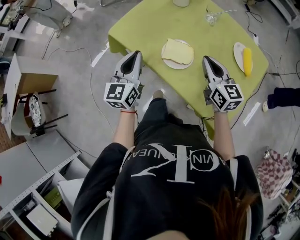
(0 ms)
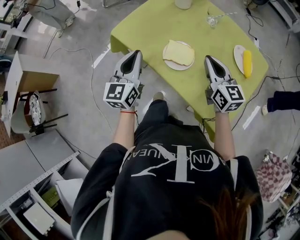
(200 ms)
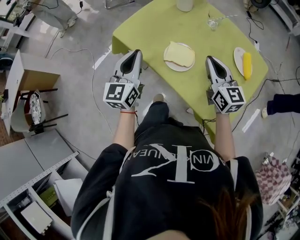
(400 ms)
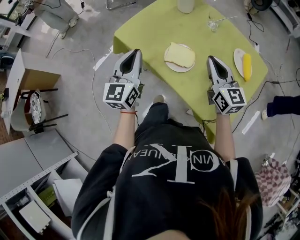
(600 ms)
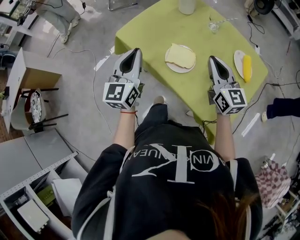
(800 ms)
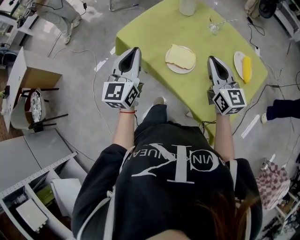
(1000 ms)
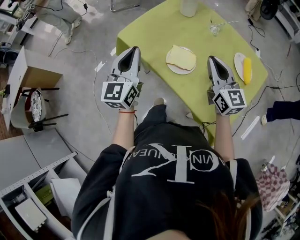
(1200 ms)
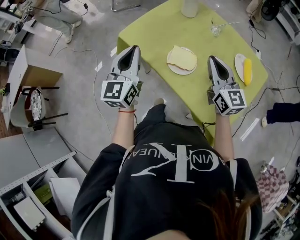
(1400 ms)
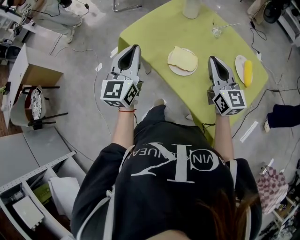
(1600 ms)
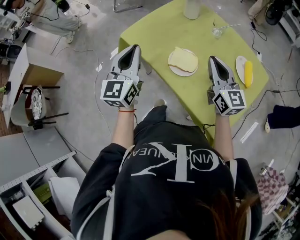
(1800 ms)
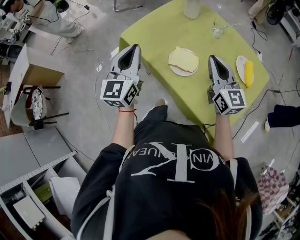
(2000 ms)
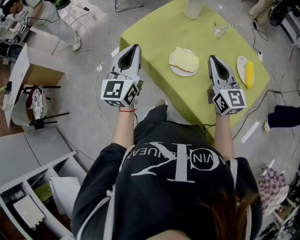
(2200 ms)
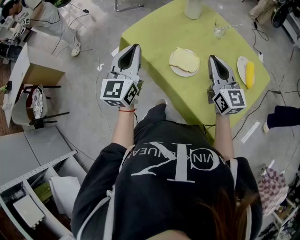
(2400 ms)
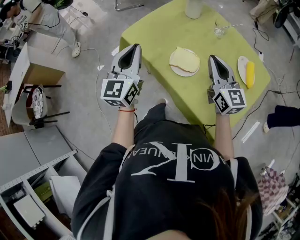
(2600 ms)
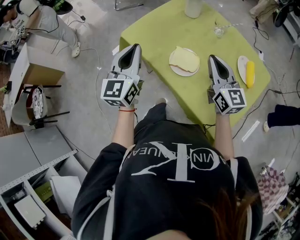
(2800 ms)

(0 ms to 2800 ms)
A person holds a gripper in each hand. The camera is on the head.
0 ms - 1400 ms: Both grippers move upward, approximately 5 cm.
1400 ms - 2800 ms: There are only small adjustments of the grippers.

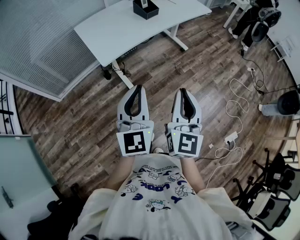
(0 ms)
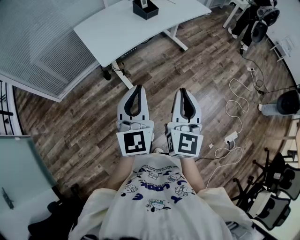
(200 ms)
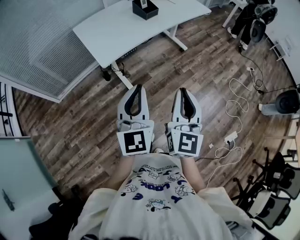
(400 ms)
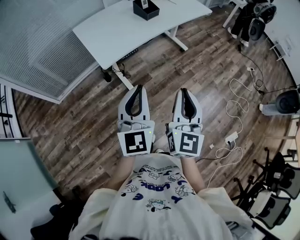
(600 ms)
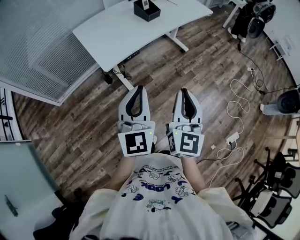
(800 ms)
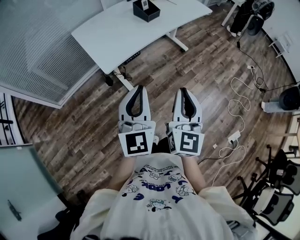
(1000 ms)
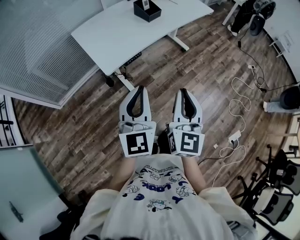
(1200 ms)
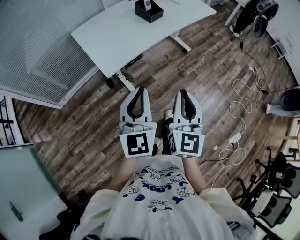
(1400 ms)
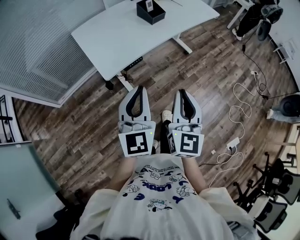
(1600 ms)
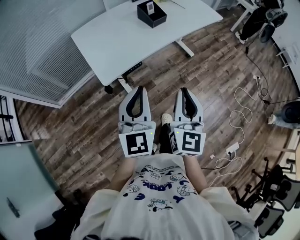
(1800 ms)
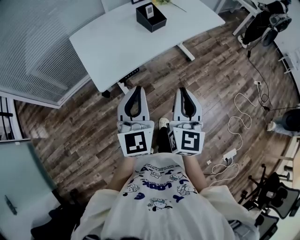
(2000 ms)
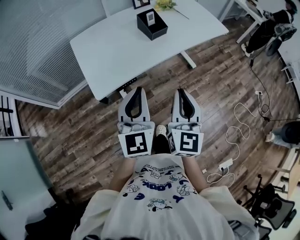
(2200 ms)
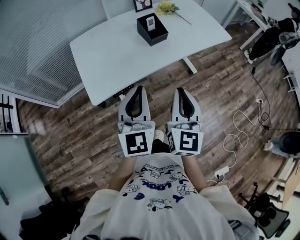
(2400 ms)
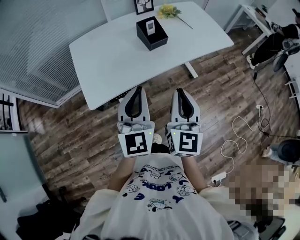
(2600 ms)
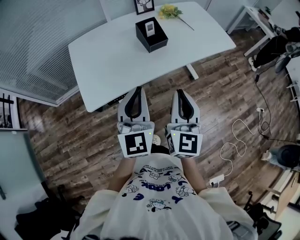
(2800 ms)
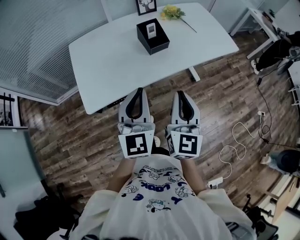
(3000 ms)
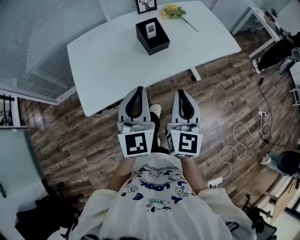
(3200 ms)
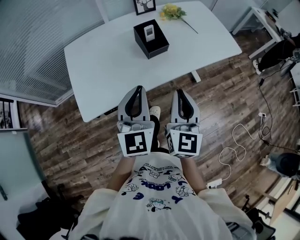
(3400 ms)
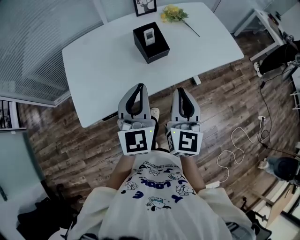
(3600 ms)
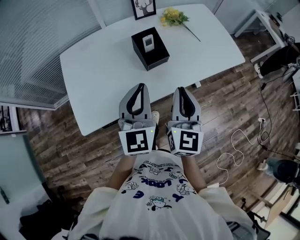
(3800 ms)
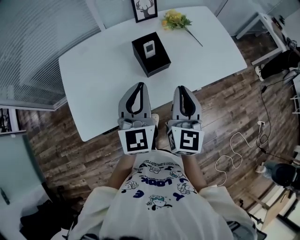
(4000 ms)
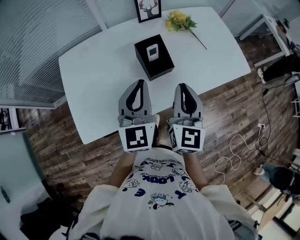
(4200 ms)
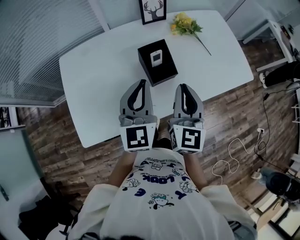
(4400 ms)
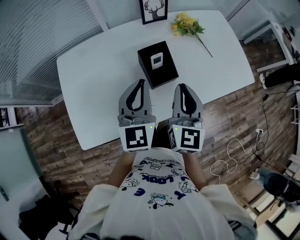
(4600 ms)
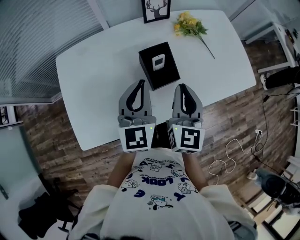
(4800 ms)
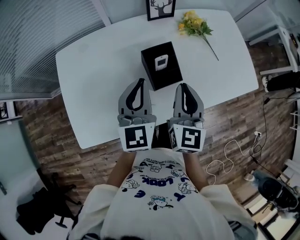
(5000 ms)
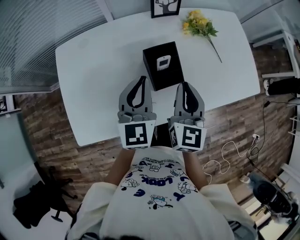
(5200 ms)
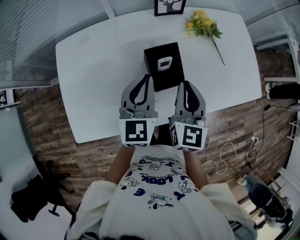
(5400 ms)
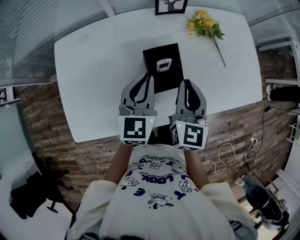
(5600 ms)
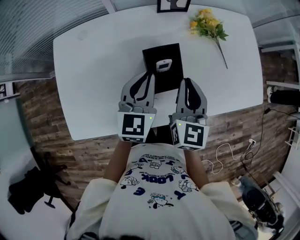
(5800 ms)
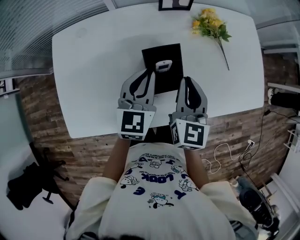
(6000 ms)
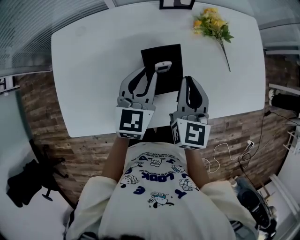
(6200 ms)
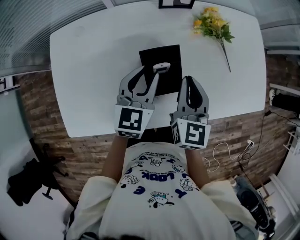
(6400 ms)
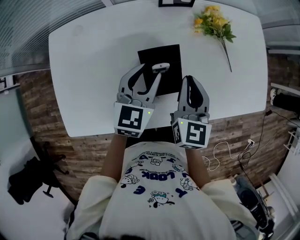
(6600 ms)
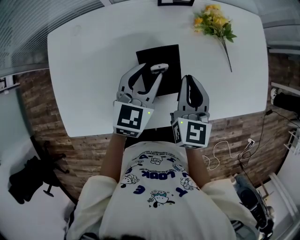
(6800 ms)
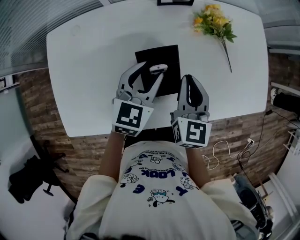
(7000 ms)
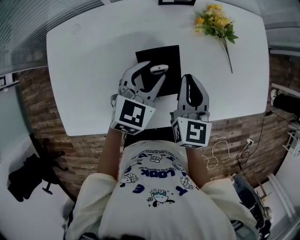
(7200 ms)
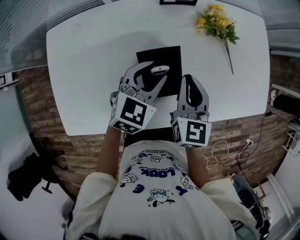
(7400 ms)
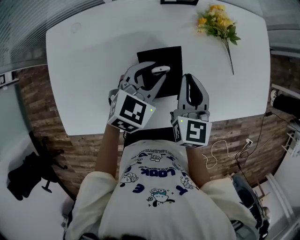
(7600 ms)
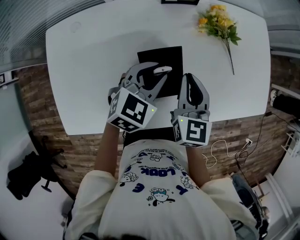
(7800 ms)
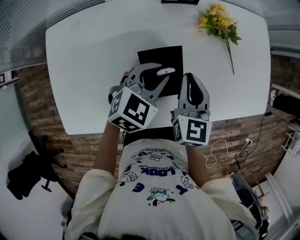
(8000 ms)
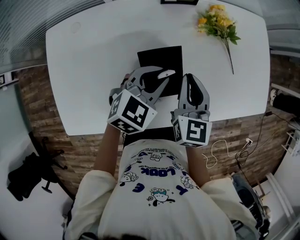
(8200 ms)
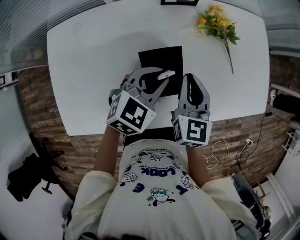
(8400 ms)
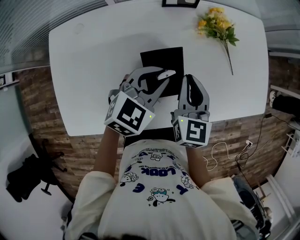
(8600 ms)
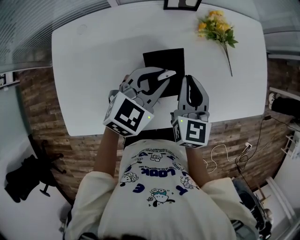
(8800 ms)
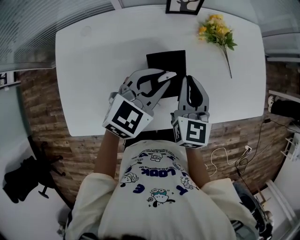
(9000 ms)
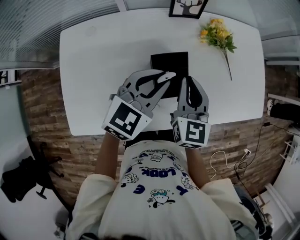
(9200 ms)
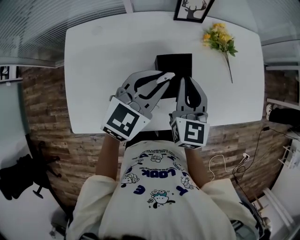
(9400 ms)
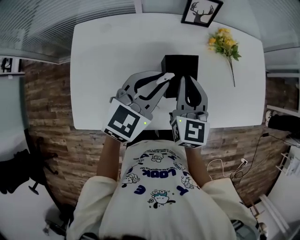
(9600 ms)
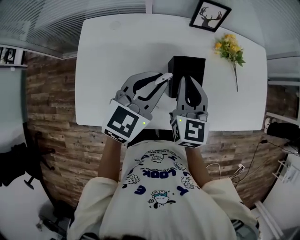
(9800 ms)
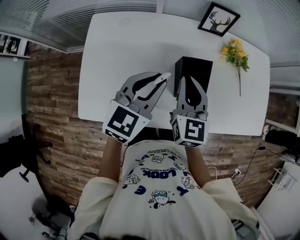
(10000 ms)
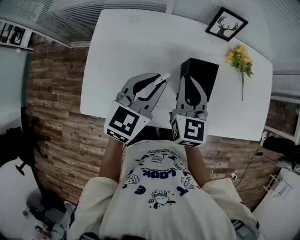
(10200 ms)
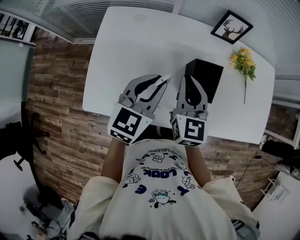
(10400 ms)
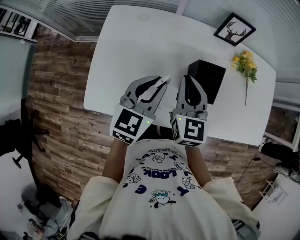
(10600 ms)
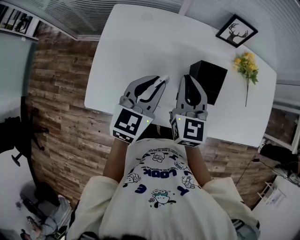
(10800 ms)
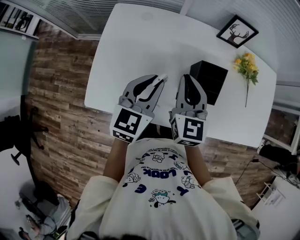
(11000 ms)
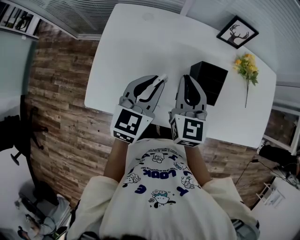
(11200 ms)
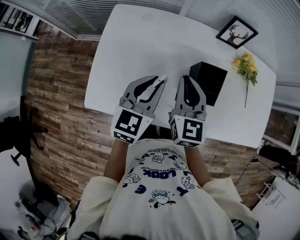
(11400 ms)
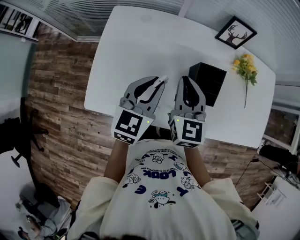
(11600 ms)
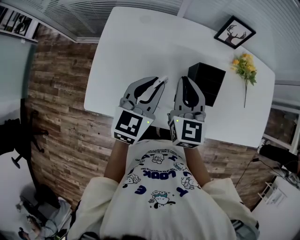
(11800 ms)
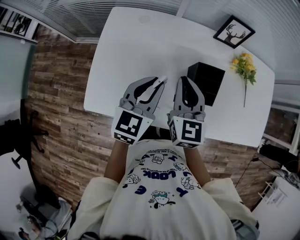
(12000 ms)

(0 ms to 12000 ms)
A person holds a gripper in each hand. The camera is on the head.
0 ms - 1600 ms: The left gripper is displaced forward by approximately 10 cm; the right gripper travels forward and to the left by some 15 cm.
1600 ms - 3000 ms: The grippers both shift forward and to the right by about 30 cm.
3000 ms - 4400 ms: The grippers both shift forward by approximately 30 cm.
4400 ms - 6000 ms: Both grippers travel together forward and downward, roughly 15 cm.
6000 ms - 7600 ms: The right gripper shifts by some 5 cm. The left gripper ends up some 5 cm from where it was, swivels approximately 30 degrees, and opens its fingers.
7600 ms - 9000 ms: The left gripper is displaced upward by about 5 cm.
9000 ms - 10400 ms: Both grippers move to the left and backward, some 15 cm. The left gripper rotates roughly 30 degrees.
10400 ms - 12000 ms: The grippers move only a little.

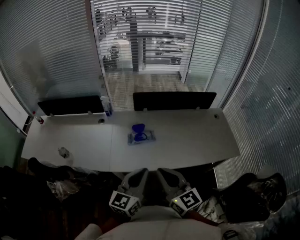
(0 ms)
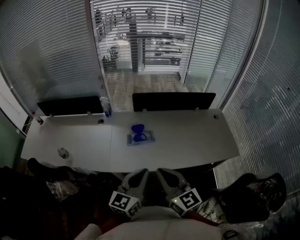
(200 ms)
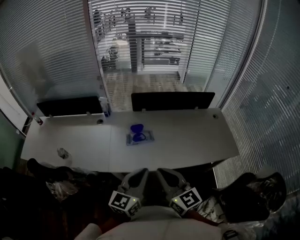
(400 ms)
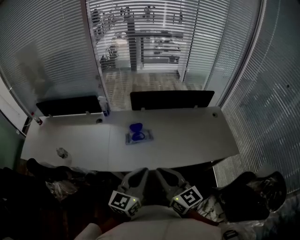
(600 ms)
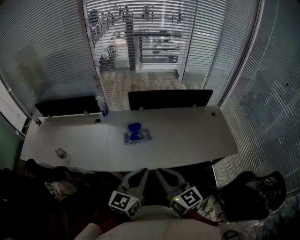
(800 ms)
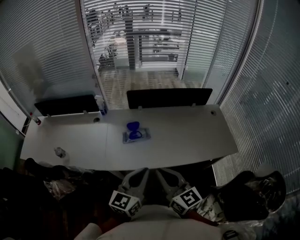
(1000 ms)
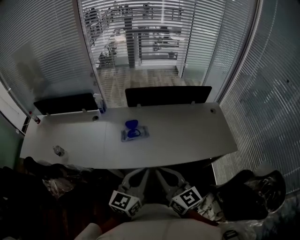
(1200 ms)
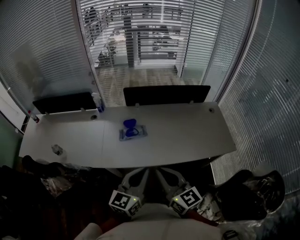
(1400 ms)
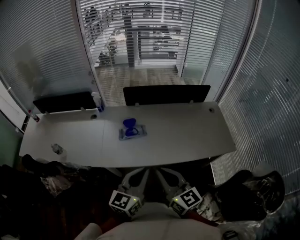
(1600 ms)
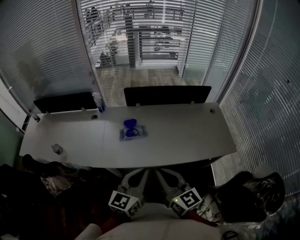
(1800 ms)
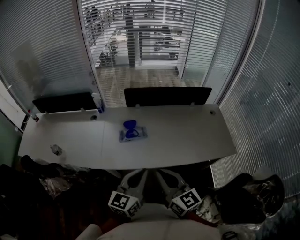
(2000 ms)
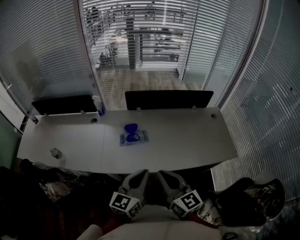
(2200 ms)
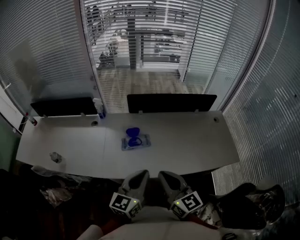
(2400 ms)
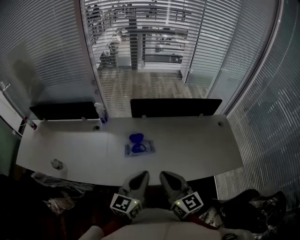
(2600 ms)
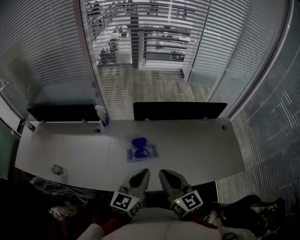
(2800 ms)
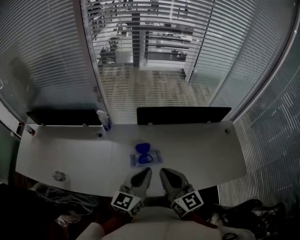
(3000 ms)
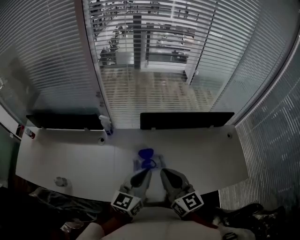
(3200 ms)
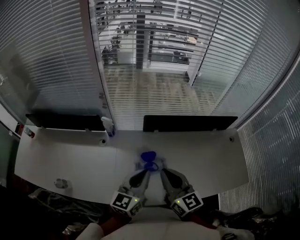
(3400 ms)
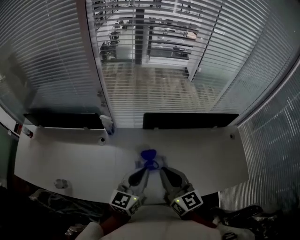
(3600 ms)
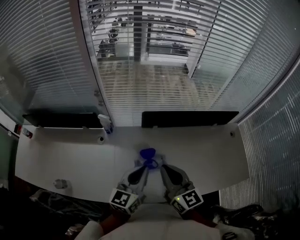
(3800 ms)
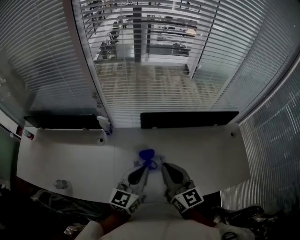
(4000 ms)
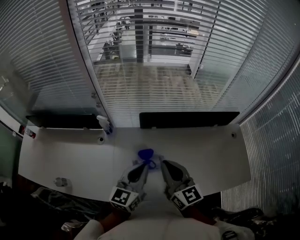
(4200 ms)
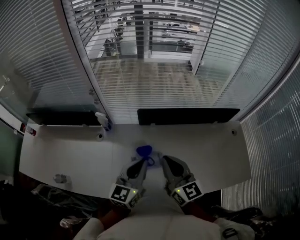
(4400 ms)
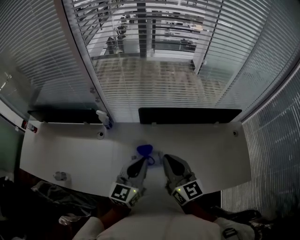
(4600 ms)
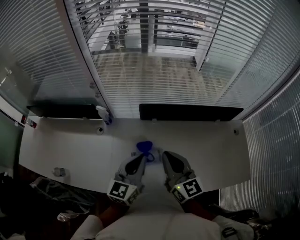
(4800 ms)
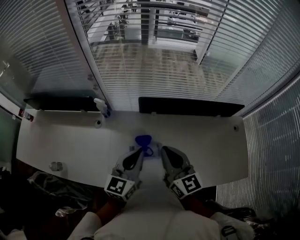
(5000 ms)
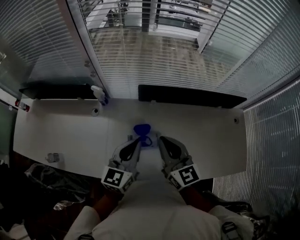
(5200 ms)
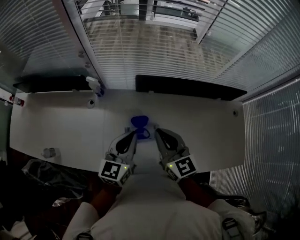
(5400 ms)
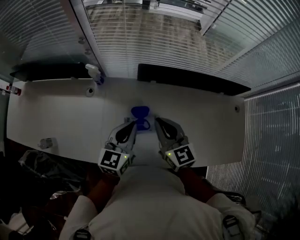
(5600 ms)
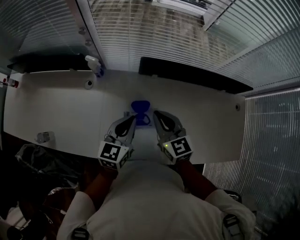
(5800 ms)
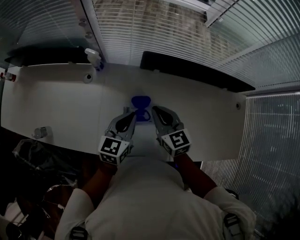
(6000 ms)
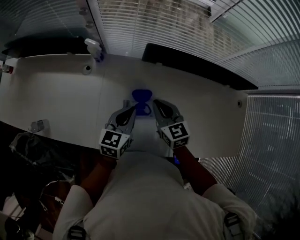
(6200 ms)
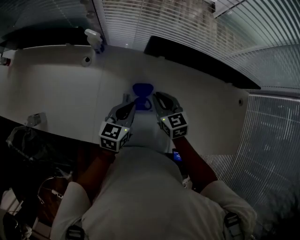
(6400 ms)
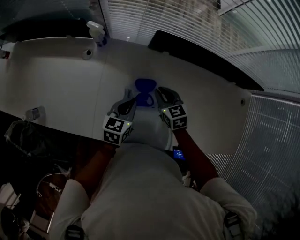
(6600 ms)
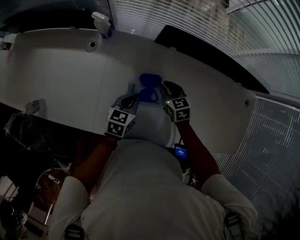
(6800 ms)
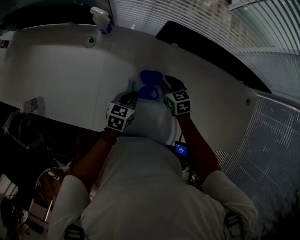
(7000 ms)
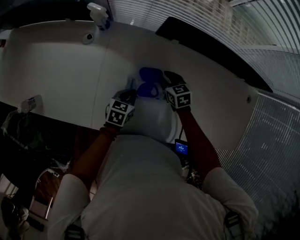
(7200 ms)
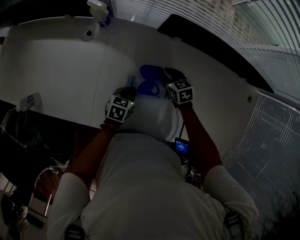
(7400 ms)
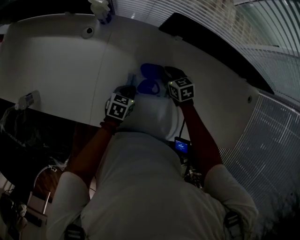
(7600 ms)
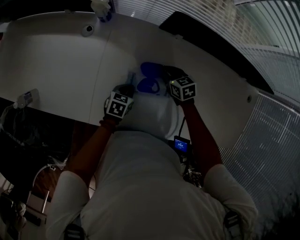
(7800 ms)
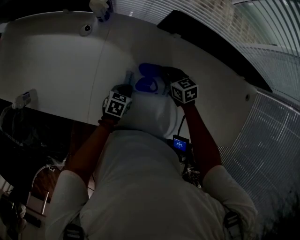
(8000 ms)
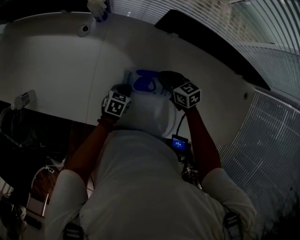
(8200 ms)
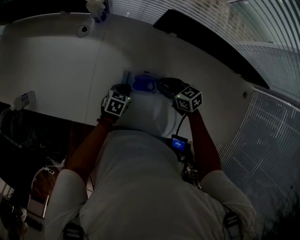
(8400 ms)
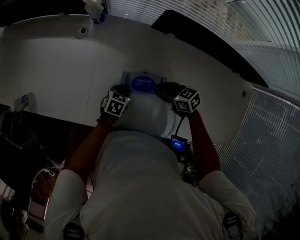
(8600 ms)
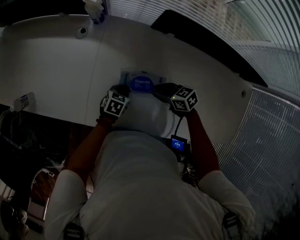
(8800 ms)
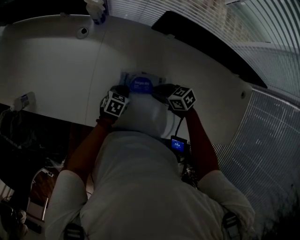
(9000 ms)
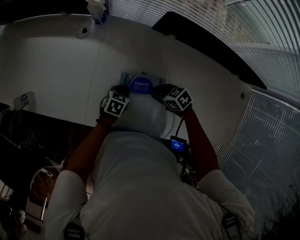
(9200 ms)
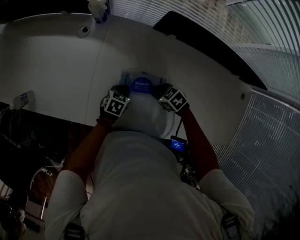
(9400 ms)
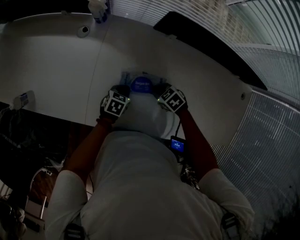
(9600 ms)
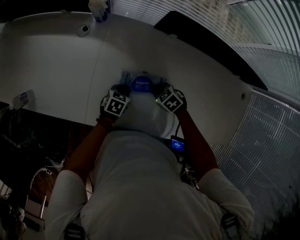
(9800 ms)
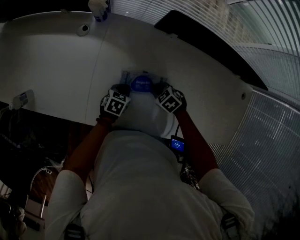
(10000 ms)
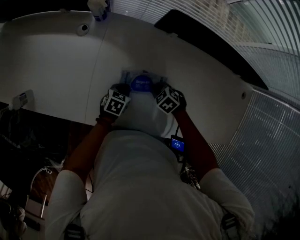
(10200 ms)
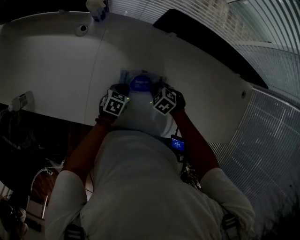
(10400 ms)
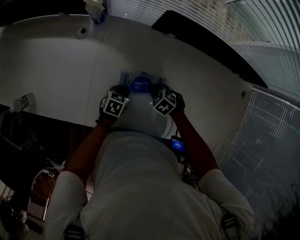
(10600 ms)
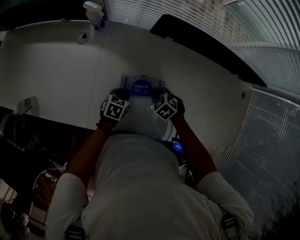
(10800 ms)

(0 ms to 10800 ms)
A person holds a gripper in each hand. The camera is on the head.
0 ms - 1600 ms: The two grippers go approximately 5 cm to the right.
1600 ms - 3000 ms: The two grippers go some 25 cm forward and to the left.
3000 ms - 4600 ms: The two grippers go about 10 cm forward.
4600 ms - 6200 ms: The left gripper goes some 15 cm downward, and rotates some 20 degrees. The right gripper is displaced downward and forward by some 20 cm, and turns by roughly 30 degrees.
6200 ms - 7800 ms: The two grippers go about 20 cm downward. The right gripper changes its angle by about 30 degrees, while the left gripper turns by about 30 degrees.
7800 ms - 9200 ms: The right gripper shifts by approximately 10 cm, and swivels about 30 degrees.
9200 ms - 10800 ms: The right gripper swivels about 30 degrees.
